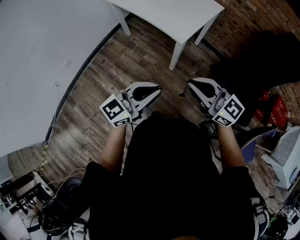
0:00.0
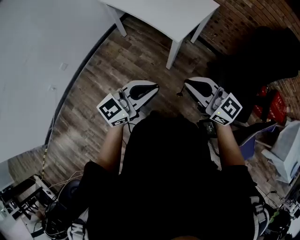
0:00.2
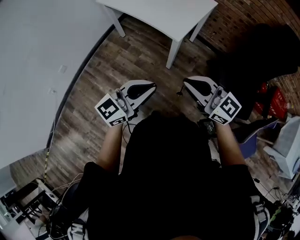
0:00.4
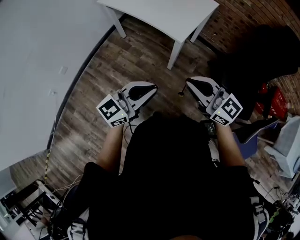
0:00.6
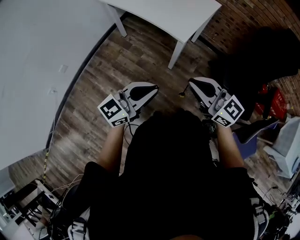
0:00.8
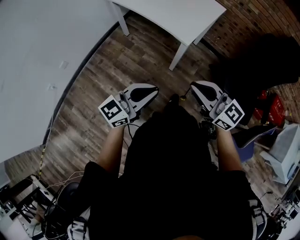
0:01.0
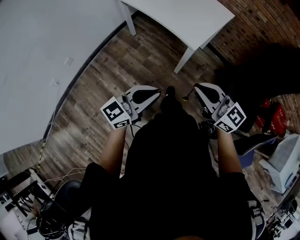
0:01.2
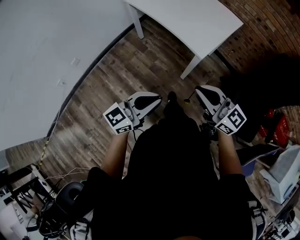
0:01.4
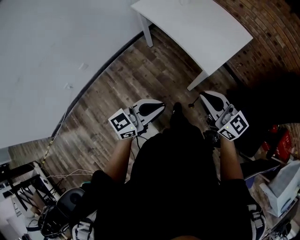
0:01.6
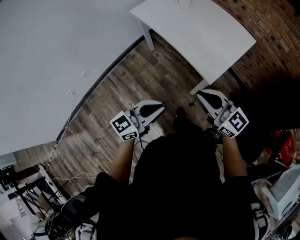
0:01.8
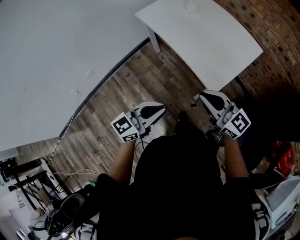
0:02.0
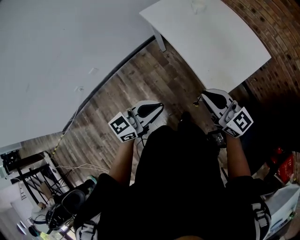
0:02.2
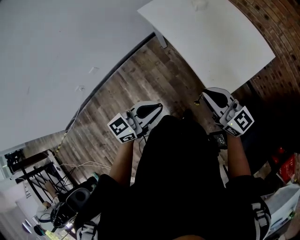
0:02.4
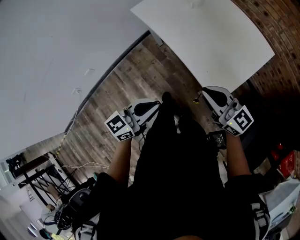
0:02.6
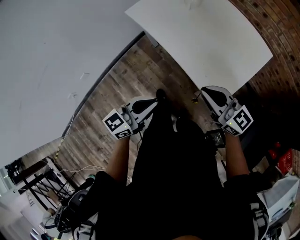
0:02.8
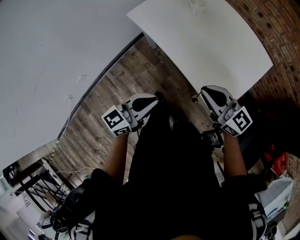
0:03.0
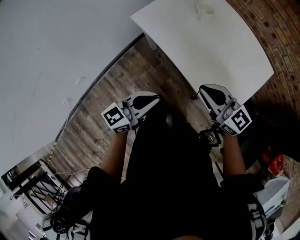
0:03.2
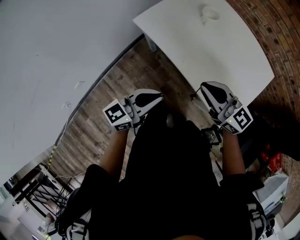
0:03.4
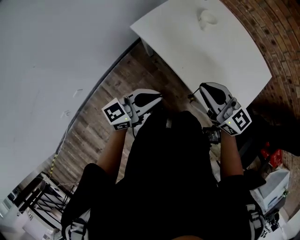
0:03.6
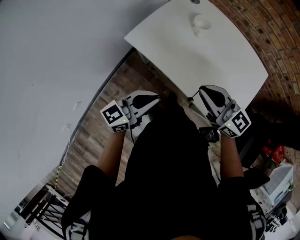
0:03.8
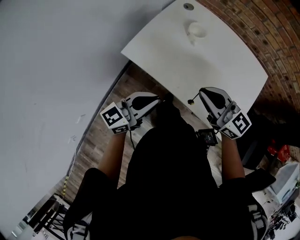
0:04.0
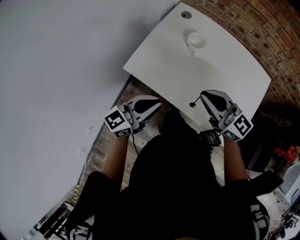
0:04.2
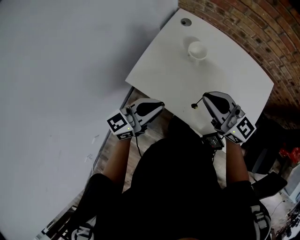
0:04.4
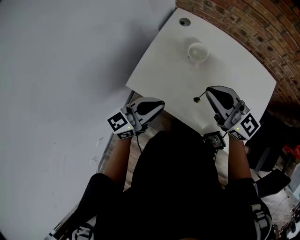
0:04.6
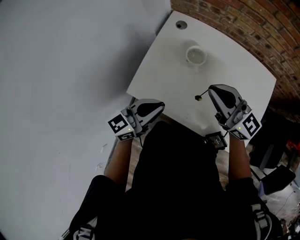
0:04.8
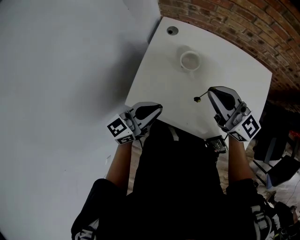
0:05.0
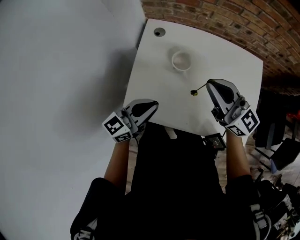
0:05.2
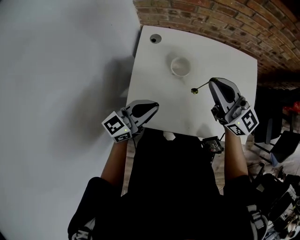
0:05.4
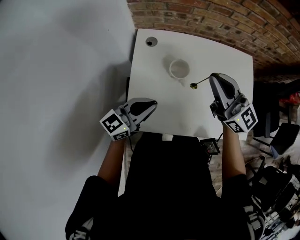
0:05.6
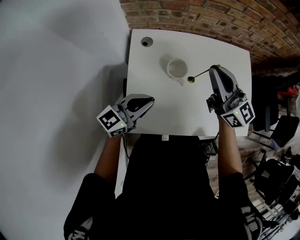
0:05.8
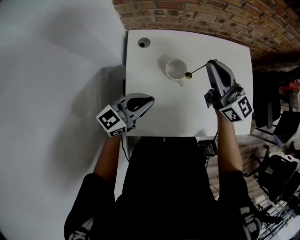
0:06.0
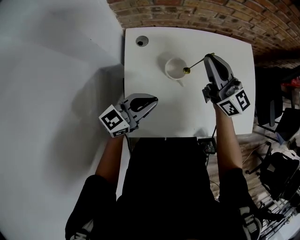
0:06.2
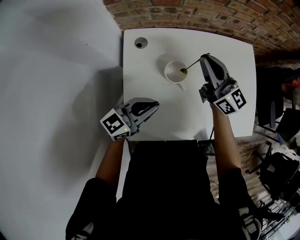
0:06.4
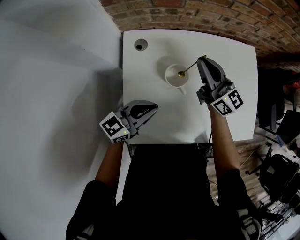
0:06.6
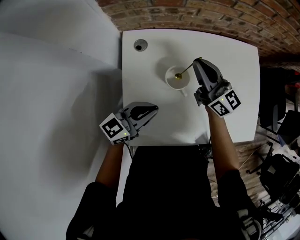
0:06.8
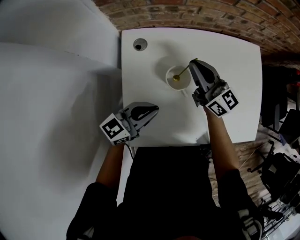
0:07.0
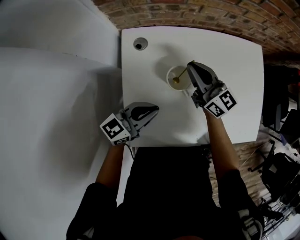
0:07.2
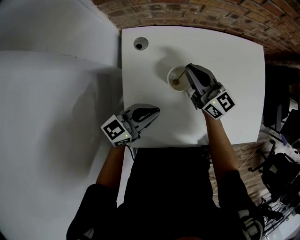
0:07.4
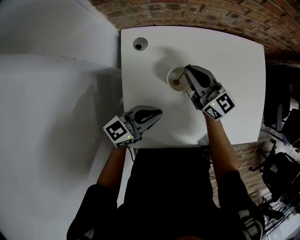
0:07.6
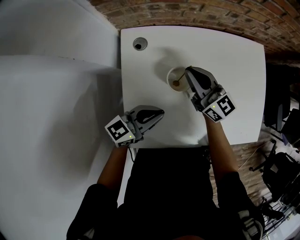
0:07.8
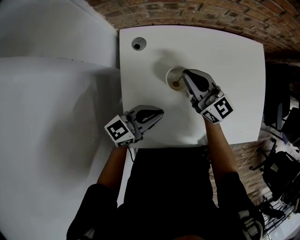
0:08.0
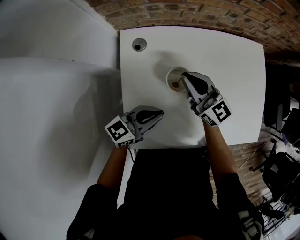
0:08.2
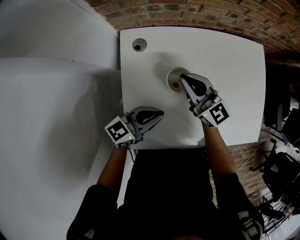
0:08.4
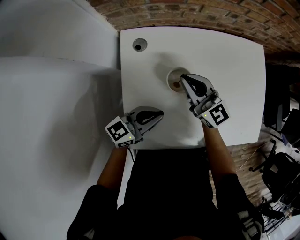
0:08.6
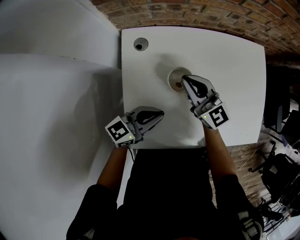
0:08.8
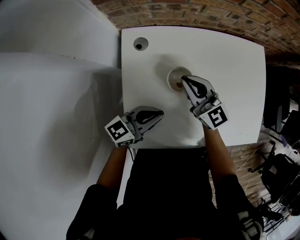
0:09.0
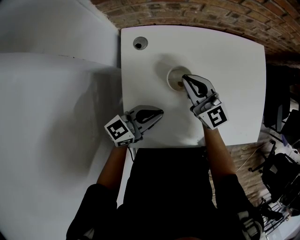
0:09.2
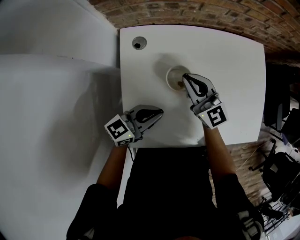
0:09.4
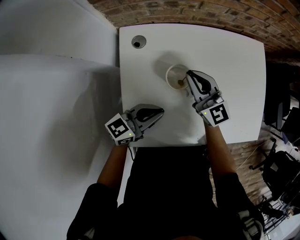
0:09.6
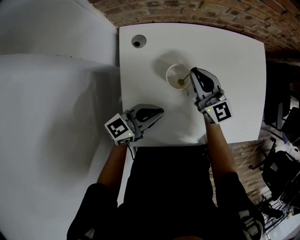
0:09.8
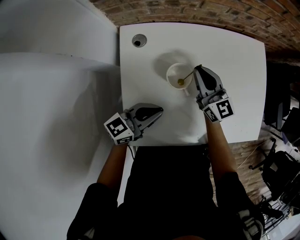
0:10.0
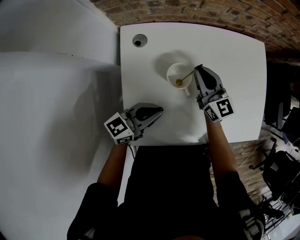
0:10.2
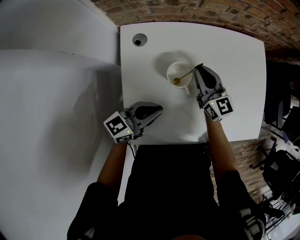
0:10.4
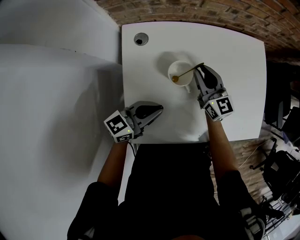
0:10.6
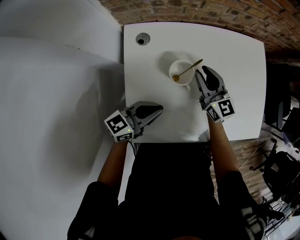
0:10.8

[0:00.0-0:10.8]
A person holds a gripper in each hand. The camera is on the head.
0:00.0 to 0:01.6: The left gripper goes some 15 cm to the left and forward; the right gripper goes approximately 15 cm forward and to the left.
0:01.6 to 0:03.0: The two grippers go about 30 cm forward.
0:03.0 to 0:04.6: Both grippers move forward, roughly 35 cm. The right gripper swivels approximately 20 degrees. The left gripper changes its angle by about 20 degrees.
0:04.6 to 0:06.2: The right gripper moves roughly 20 cm, and swivels roughly 50 degrees; the left gripper changes place by some 20 cm, and swivels approximately 30 degrees.
0:06.2 to 0:07.8: The right gripper heads downward, covering some 15 cm. Meanwhile the left gripper travels downward by some 5 cm.
0:07.8 to 0:09.2: The grippers stay close to where they were, moving slightly.
0:09.2 to 0:10.8: The right gripper goes some 5 cm to the right, and opens up.

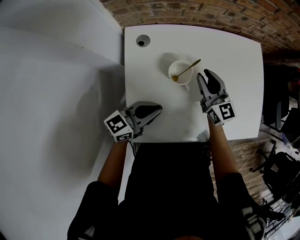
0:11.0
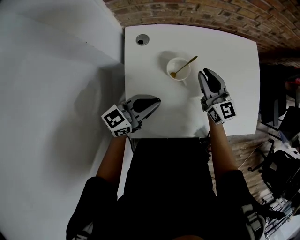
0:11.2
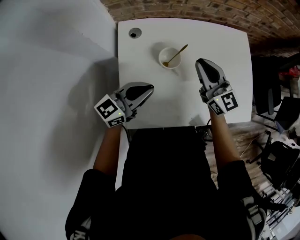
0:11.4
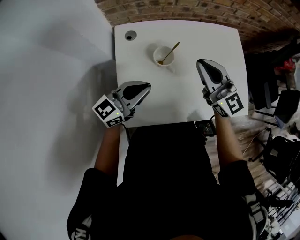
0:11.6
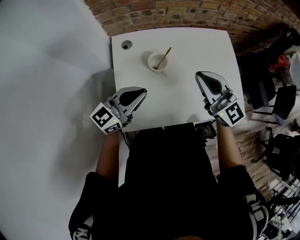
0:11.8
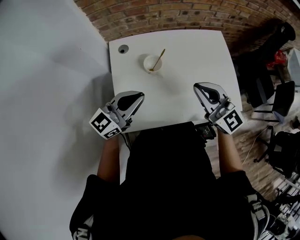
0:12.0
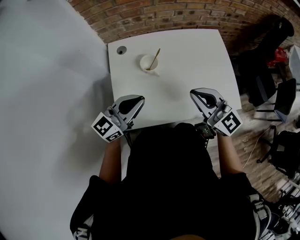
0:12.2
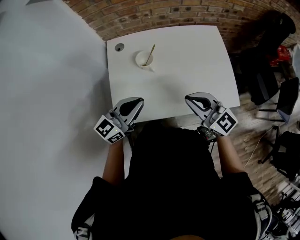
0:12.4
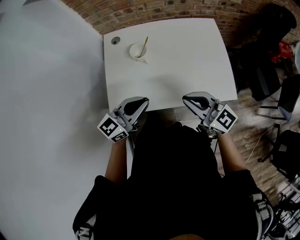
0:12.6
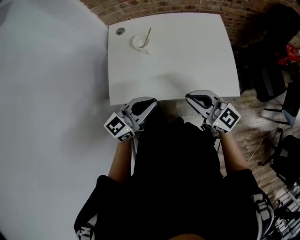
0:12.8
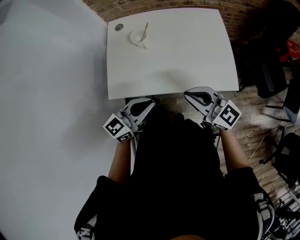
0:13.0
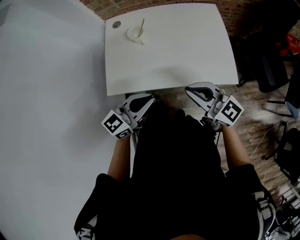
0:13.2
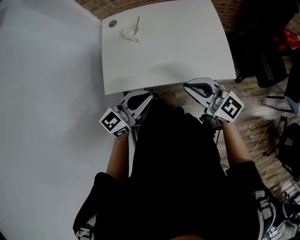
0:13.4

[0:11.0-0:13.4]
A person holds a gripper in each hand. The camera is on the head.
0:11.0 to 0:12.2: The left gripper shifts about 15 cm upward and backward, and swivels approximately 20 degrees. The right gripper heads backward, upward and to the right, covering some 30 cm, turns by about 20 degrees, and closes up.
0:12.2 to 0:13.4: The grippers both shift backward and to the right by approximately 20 cm.

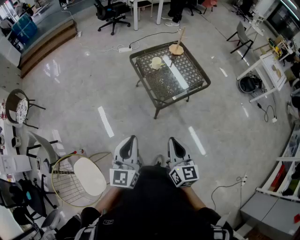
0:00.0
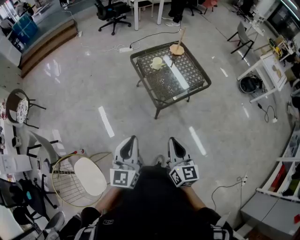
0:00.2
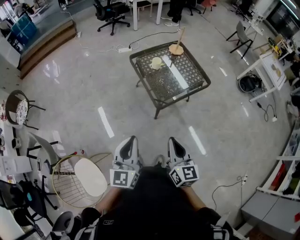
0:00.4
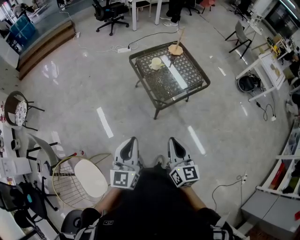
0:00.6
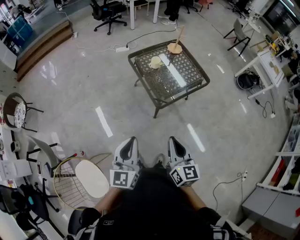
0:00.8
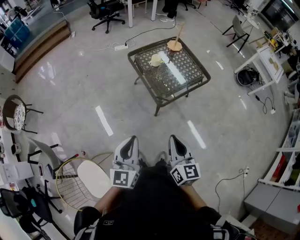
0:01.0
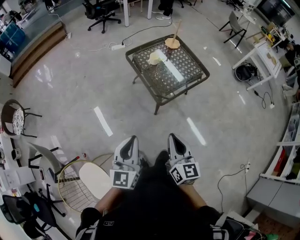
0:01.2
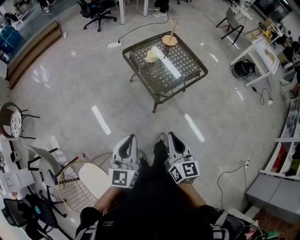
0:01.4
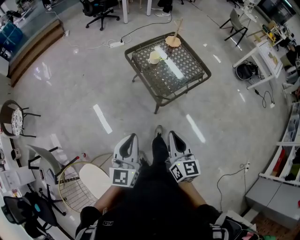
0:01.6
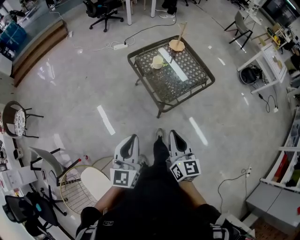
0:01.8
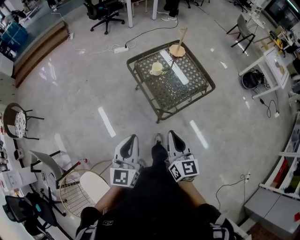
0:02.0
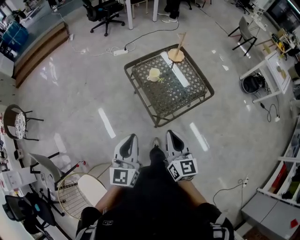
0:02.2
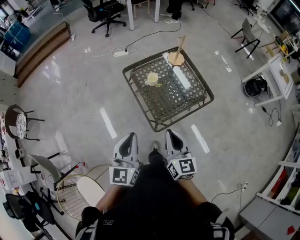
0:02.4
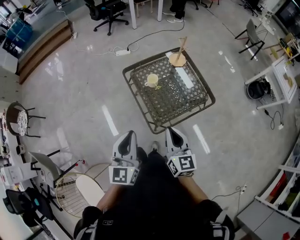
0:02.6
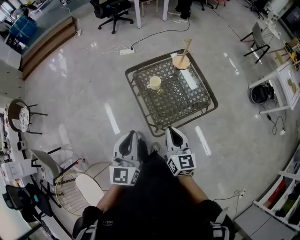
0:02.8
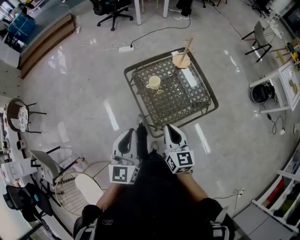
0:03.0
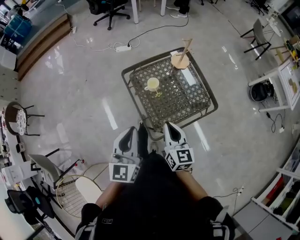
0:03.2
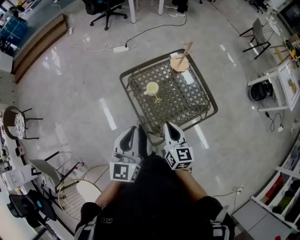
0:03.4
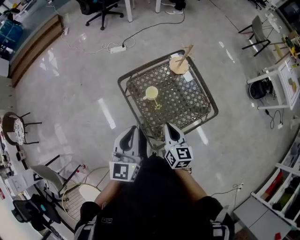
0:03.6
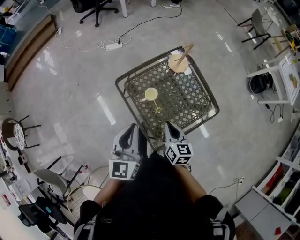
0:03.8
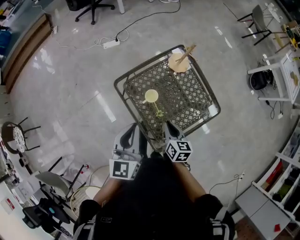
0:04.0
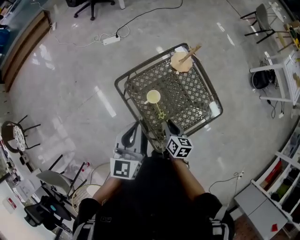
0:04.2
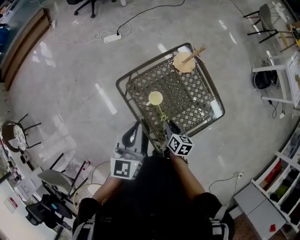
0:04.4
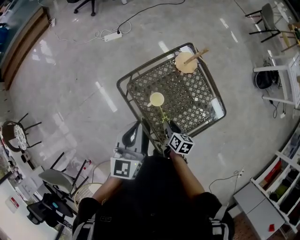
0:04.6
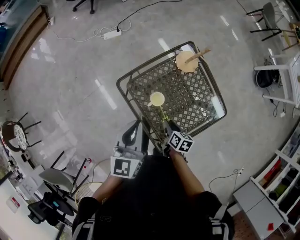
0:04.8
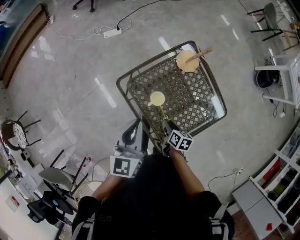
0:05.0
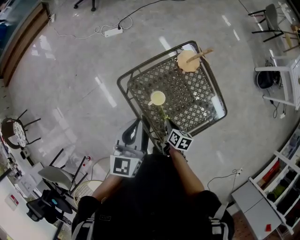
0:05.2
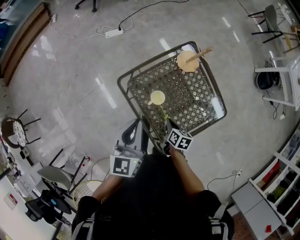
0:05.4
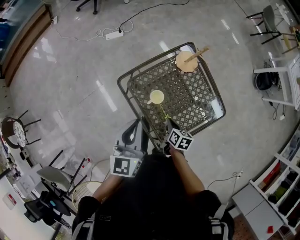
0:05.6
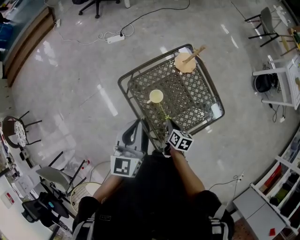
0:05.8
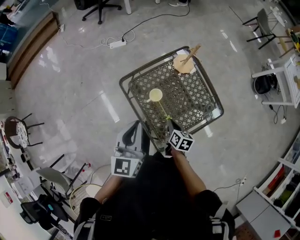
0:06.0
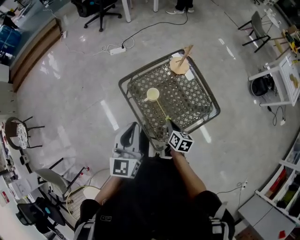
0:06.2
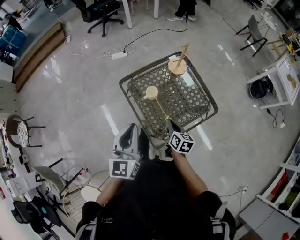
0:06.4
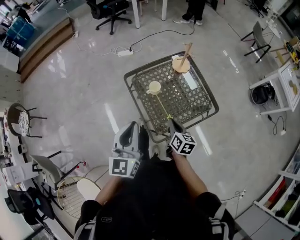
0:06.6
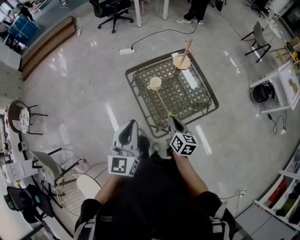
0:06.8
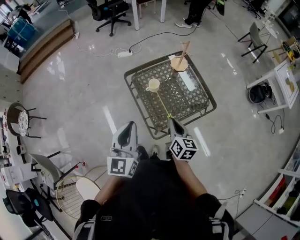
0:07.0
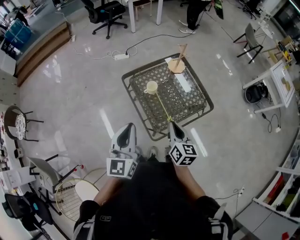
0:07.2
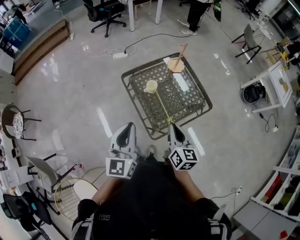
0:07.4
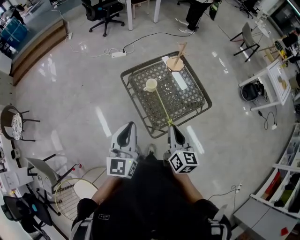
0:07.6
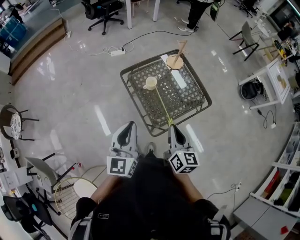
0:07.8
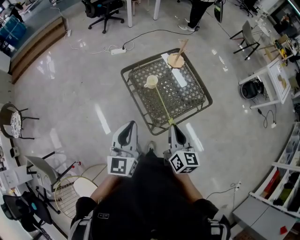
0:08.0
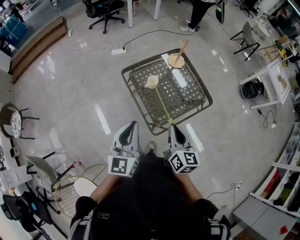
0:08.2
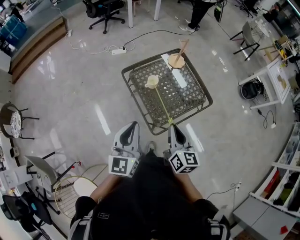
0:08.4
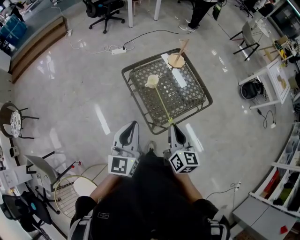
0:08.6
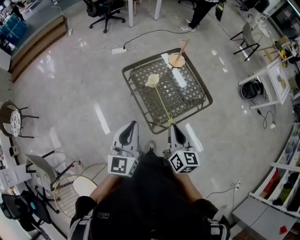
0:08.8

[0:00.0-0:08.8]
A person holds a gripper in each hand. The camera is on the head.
0:00.0 to 0:01.4: Both grippers move to the left, some 5 cm.
0:01.4 to 0:03.0: Both grippers travel together forward, some 35 cm.
0:03.0 to 0:04.4: The left gripper moves forward, approximately 30 cm. The right gripper travels forward and downward by roughly 30 cm, turns by roughly 40 degrees, and opens its fingers.
0:04.4 to 0:05.8: The grippers make only small movements.
0:05.8 to 0:07.4: The left gripper heads backward, covering roughly 25 cm. Meanwhile the right gripper goes approximately 30 cm upward and backward, and rotates some 40 degrees.
0:07.4 to 0:08.8: The right gripper changes place by some 5 cm.

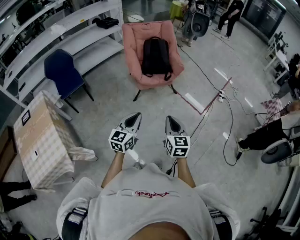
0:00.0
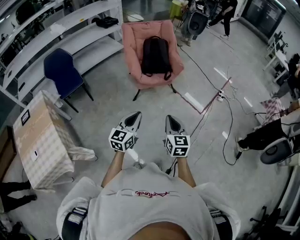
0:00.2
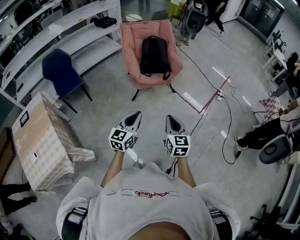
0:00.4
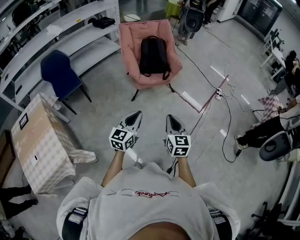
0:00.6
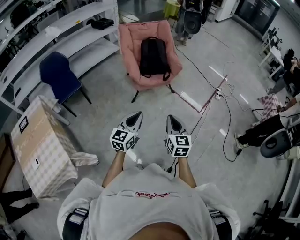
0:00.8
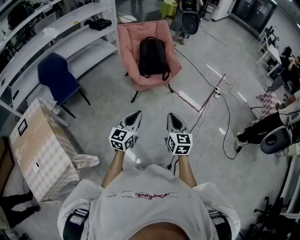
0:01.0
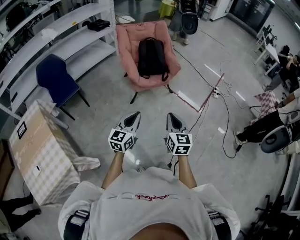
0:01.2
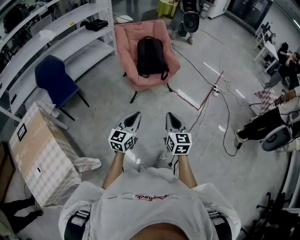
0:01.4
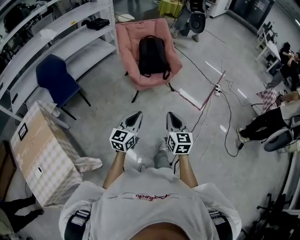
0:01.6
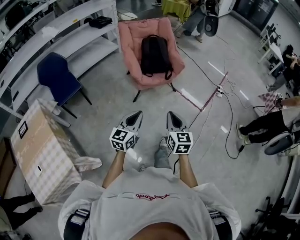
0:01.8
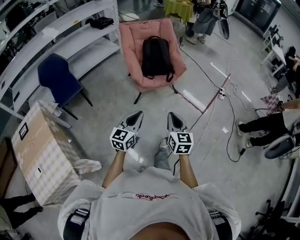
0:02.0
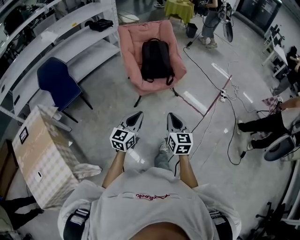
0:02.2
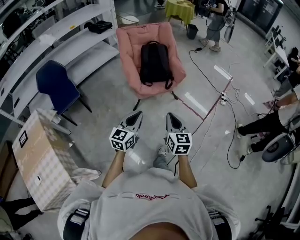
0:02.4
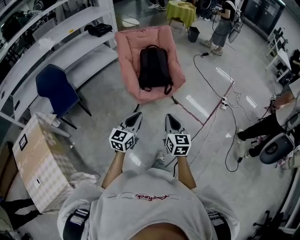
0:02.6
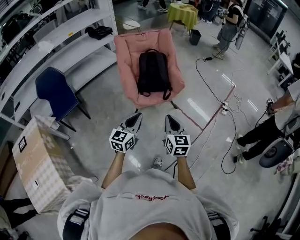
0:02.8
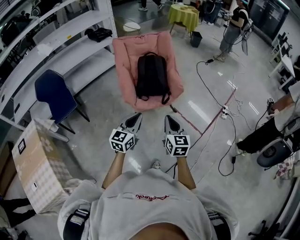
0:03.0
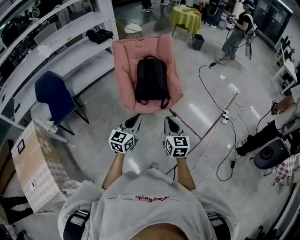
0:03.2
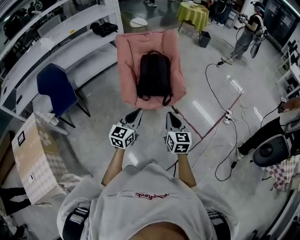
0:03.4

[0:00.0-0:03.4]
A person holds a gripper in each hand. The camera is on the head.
0:00.0 to 0:01.6: The two grippers go some 5 cm to the left.
0:01.6 to 0:03.4: Both grippers travel together forward, roughly 35 cm.
